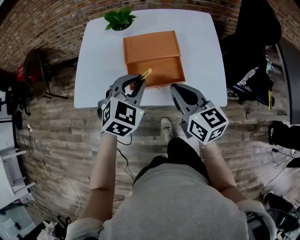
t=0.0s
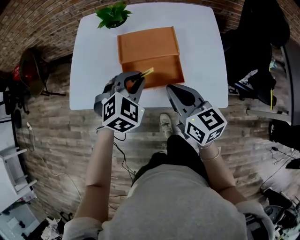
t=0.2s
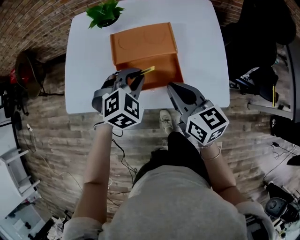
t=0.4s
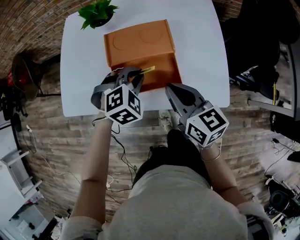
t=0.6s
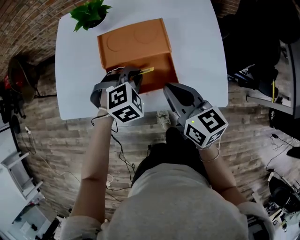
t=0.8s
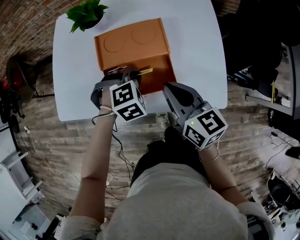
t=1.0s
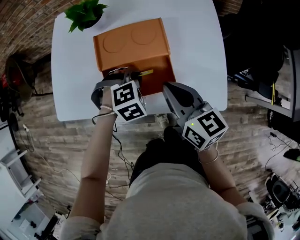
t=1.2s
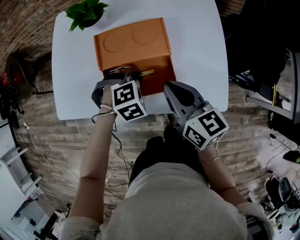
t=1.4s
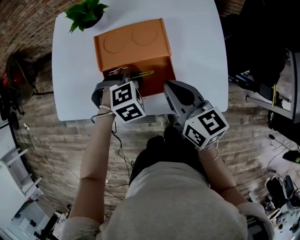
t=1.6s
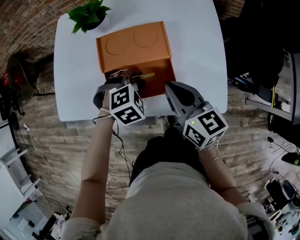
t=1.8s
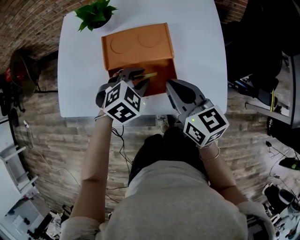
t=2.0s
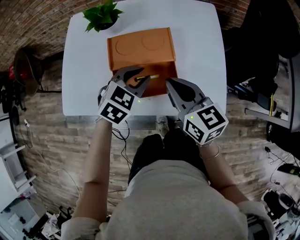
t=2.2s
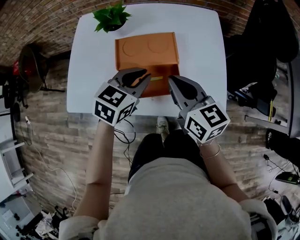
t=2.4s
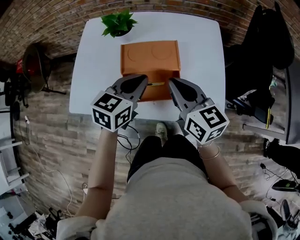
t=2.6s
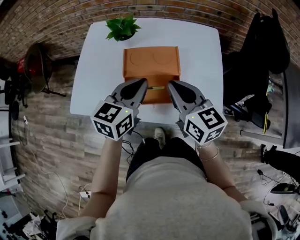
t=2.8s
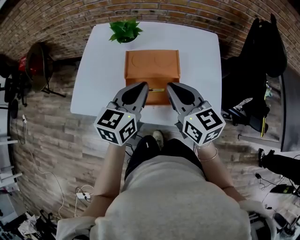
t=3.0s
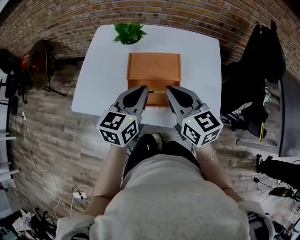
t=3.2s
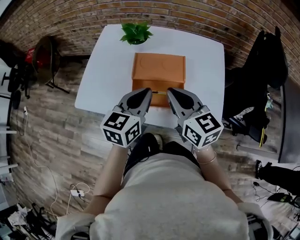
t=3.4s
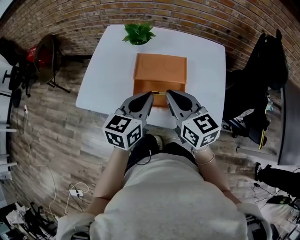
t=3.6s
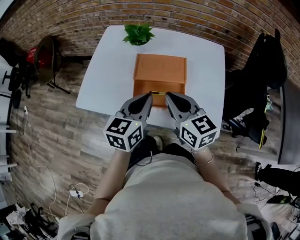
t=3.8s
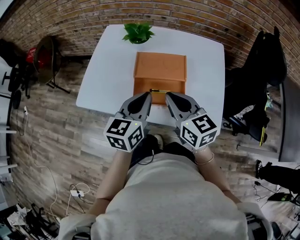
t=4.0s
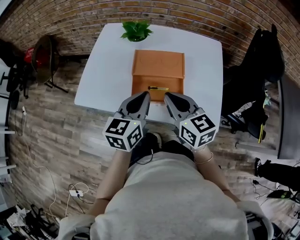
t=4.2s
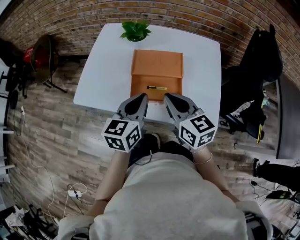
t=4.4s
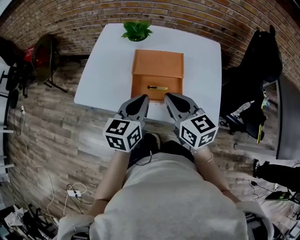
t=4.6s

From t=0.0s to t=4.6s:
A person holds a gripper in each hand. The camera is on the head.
From t=0.0s to t=1.6s: The right gripper goes approximately 10 cm forward and downward. Meanwhile the left gripper moves downward and forward, some 20 cm, and tips its fingers downward by approximately 30 degrees.
From t=1.6s to t=3.0s: The left gripper moves upward, approximately 20 cm, and points its fingers roughly 50 degrees further upward; the right gripper shifts some 10 cm upward.
From t=3.0s to t=4.6s: Both grippers move backward, approximately 5 cm.

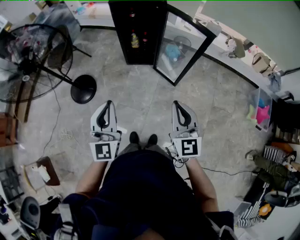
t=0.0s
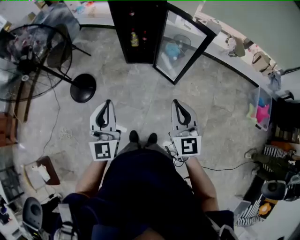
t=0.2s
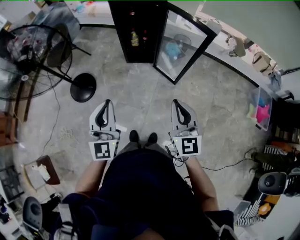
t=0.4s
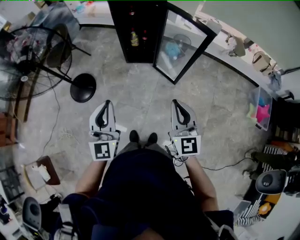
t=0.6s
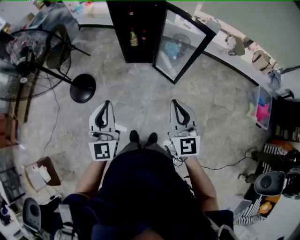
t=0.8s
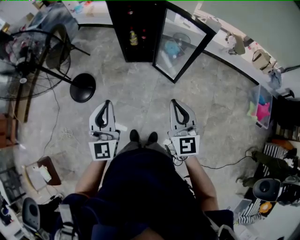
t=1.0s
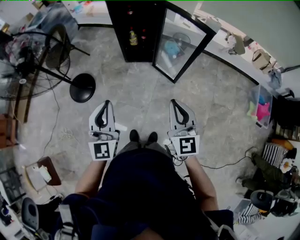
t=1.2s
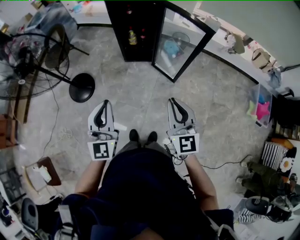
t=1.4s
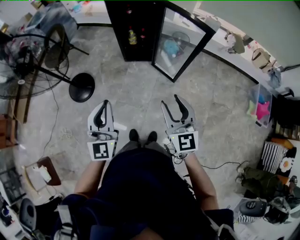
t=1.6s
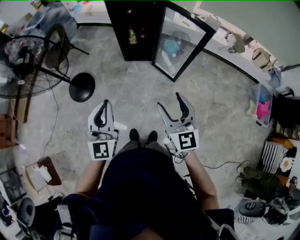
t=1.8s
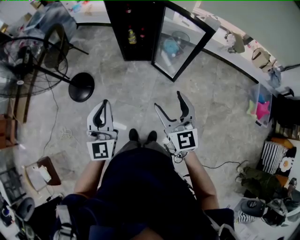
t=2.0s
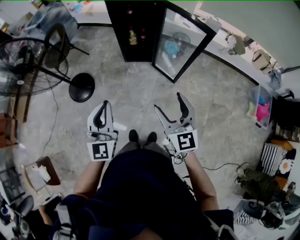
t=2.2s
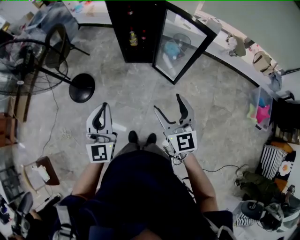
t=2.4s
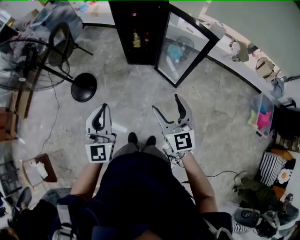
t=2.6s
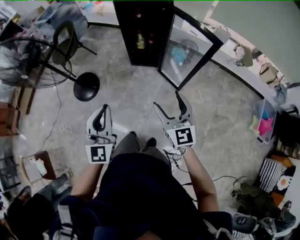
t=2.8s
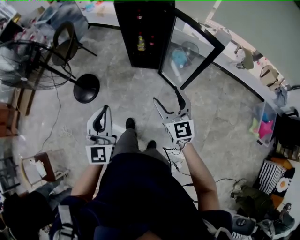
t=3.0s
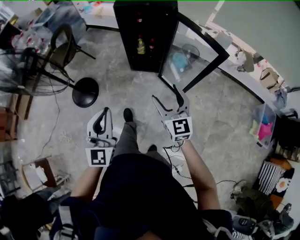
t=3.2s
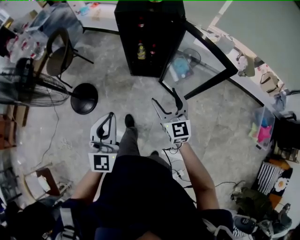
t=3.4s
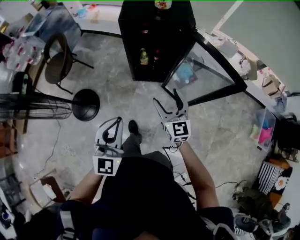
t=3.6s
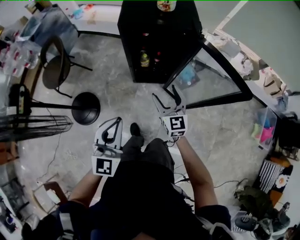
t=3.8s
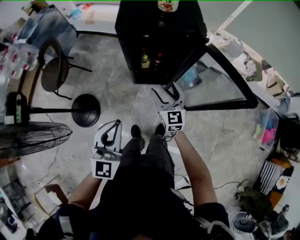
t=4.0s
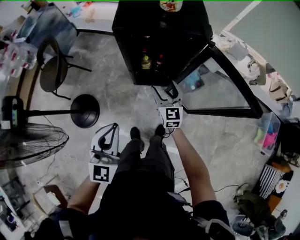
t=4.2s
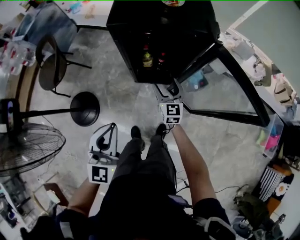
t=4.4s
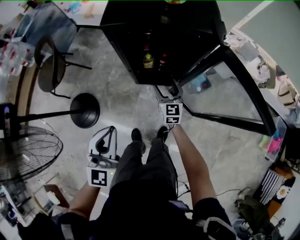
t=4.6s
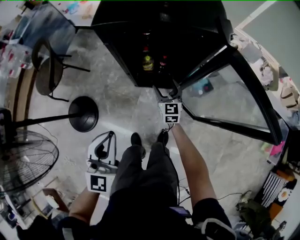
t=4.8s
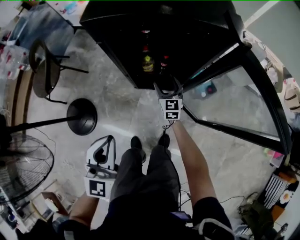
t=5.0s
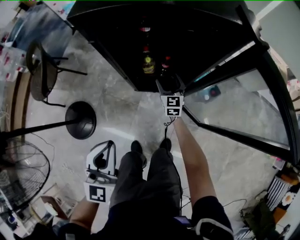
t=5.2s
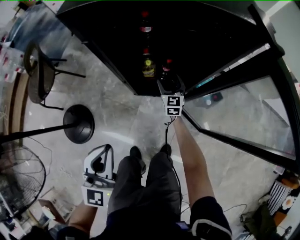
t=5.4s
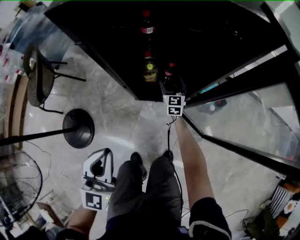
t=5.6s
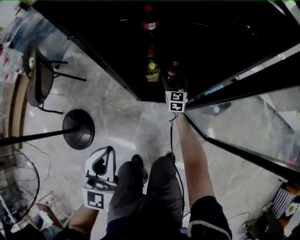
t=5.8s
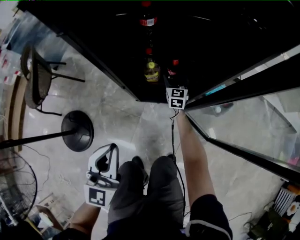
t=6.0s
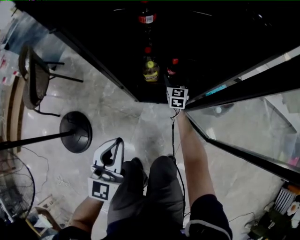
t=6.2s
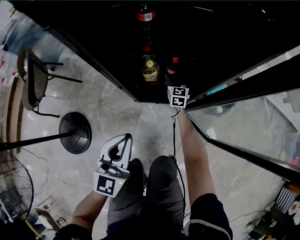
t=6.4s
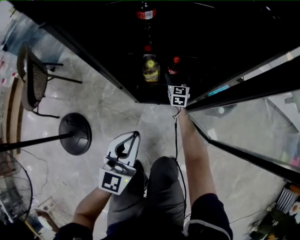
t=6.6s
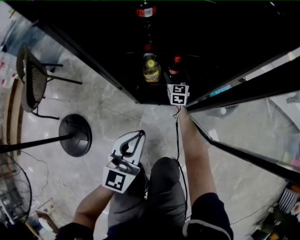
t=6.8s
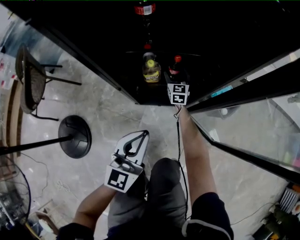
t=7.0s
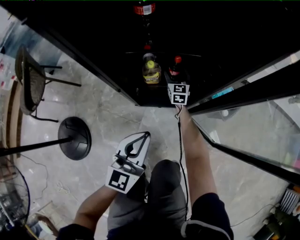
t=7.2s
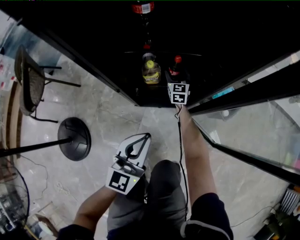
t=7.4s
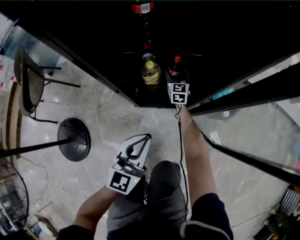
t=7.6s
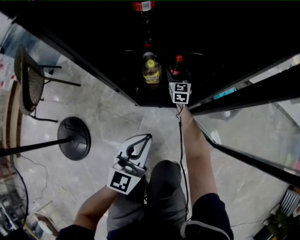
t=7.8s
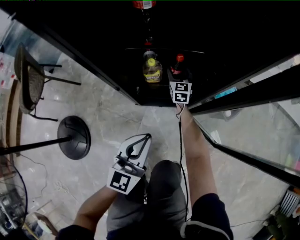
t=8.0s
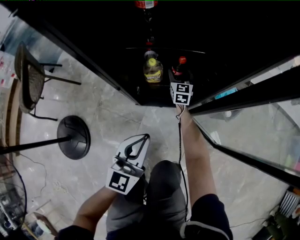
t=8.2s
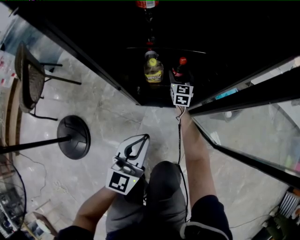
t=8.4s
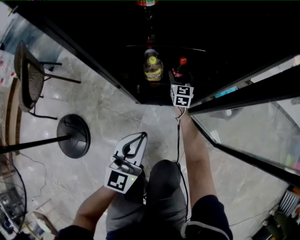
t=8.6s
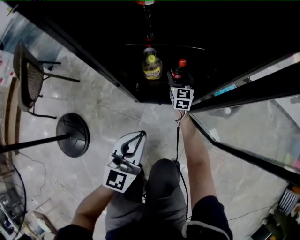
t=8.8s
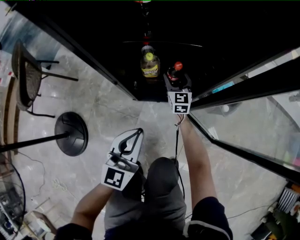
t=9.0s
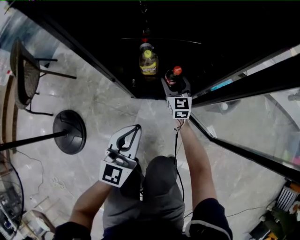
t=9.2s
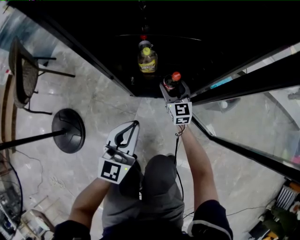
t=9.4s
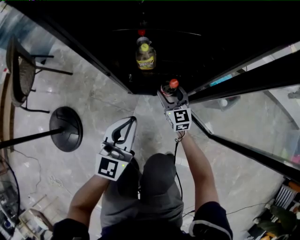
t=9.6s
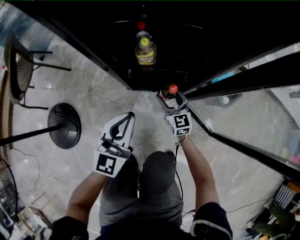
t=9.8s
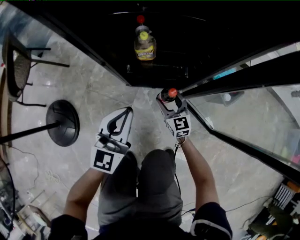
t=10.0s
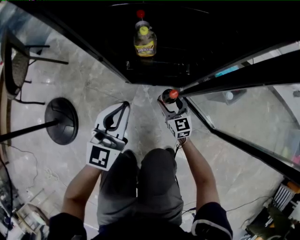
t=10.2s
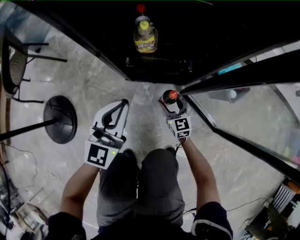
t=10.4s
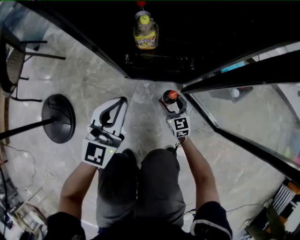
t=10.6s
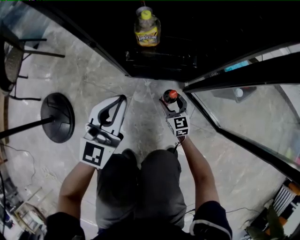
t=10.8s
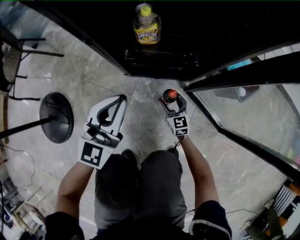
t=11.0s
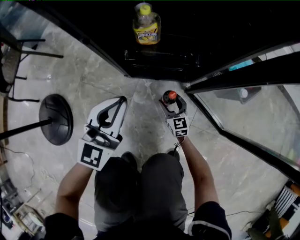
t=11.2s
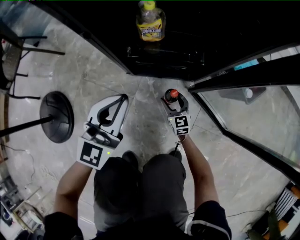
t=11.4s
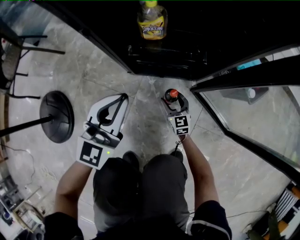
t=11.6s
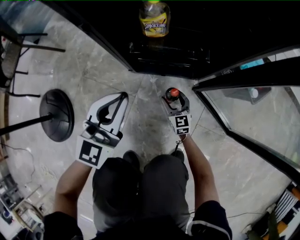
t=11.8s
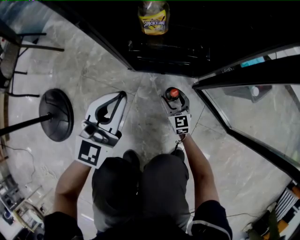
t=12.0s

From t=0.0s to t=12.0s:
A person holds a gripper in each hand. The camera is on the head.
From t=0.0s to t=1.6s: The right gripper opens.
From t=1.6s to t=3.0s: The right gripper shifts roughly 10 cm forward, and opens.
From t=3.0s to t=4.4s: The two grippers travel together, forward, roughly 50 cm. The right gripper shifts approximately 30 cm downward.
From t=4.4s to t=6.0s: The grippers both shift downward and forward by roughly 40 cm.
From t=6.0s to t=7.6s: The right gripper shifts approximately 10 cm downward and forward, while the left gripper goes approximately 20 cm downward, to the right and forward.
From t=7.6s to t=9.0s: The right gripper is displaced backward by approximately 5 cm.
From t=9.0s to t=10.4s: The right gripper heads backward and downward, covering about 25 cm; the left gripper travels downward by some 10 cm.
From t=10.4s to t=12.0s: The left gripper is displaced downward by some 10 cm. The right gripper heads downward, covering about 15 cm.

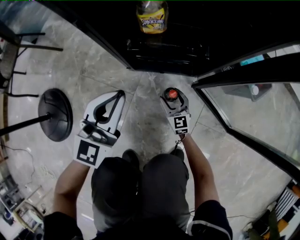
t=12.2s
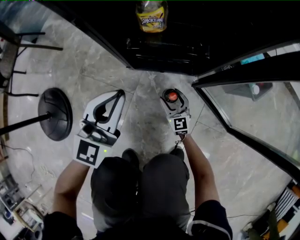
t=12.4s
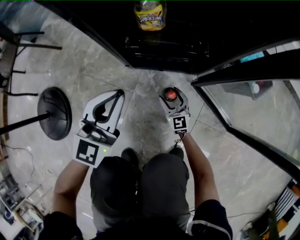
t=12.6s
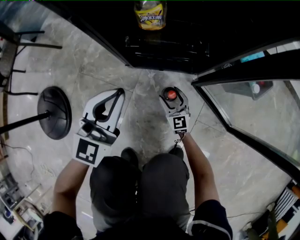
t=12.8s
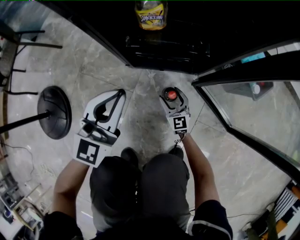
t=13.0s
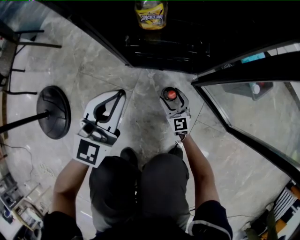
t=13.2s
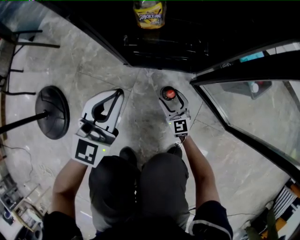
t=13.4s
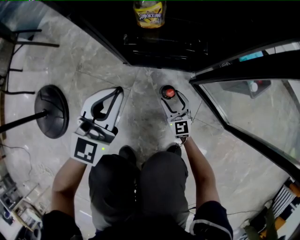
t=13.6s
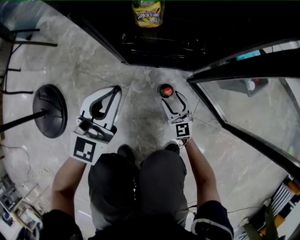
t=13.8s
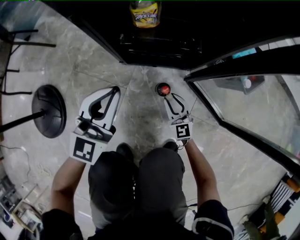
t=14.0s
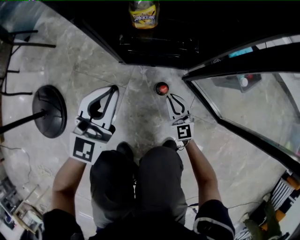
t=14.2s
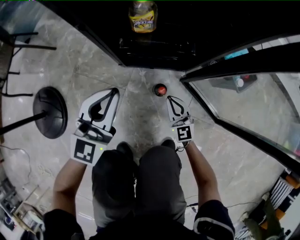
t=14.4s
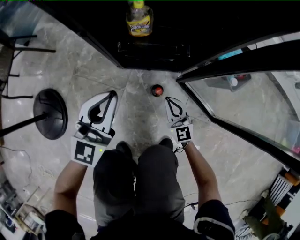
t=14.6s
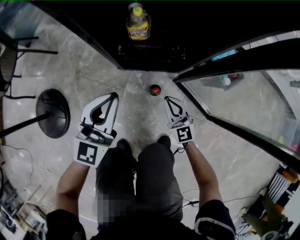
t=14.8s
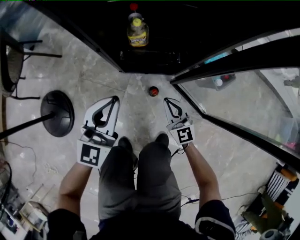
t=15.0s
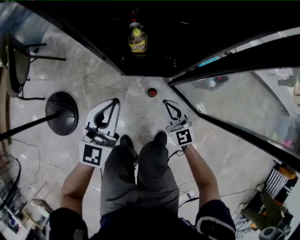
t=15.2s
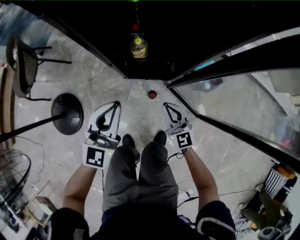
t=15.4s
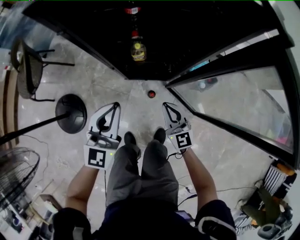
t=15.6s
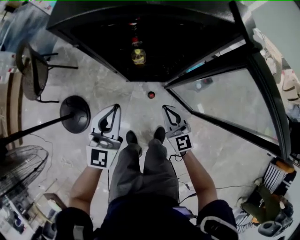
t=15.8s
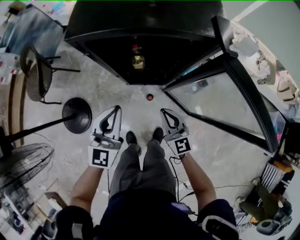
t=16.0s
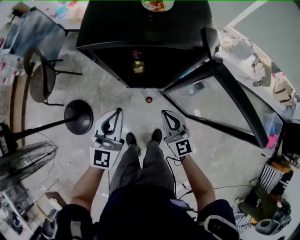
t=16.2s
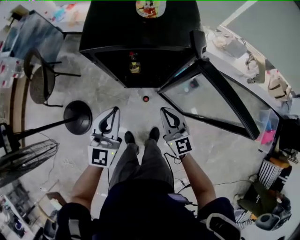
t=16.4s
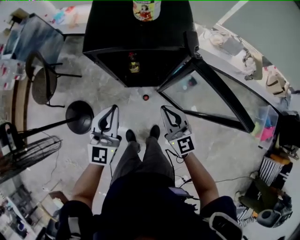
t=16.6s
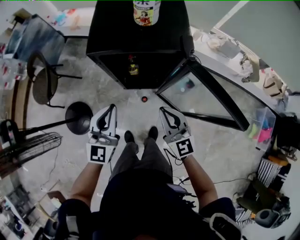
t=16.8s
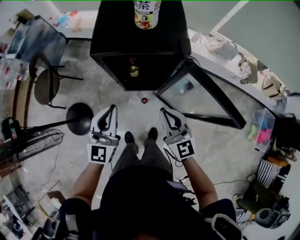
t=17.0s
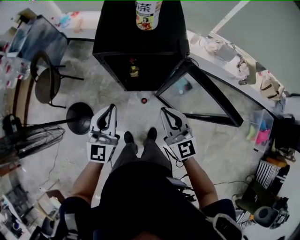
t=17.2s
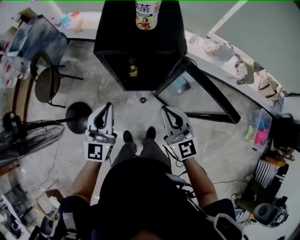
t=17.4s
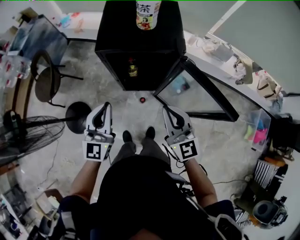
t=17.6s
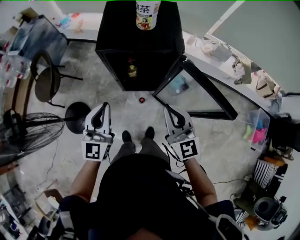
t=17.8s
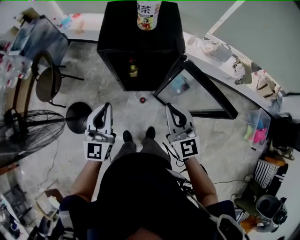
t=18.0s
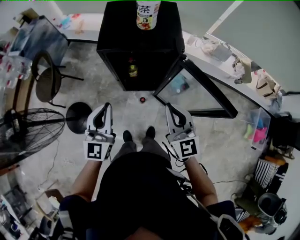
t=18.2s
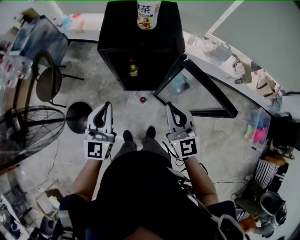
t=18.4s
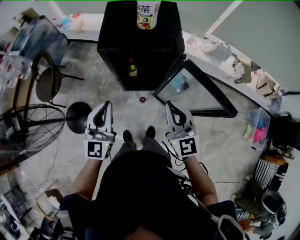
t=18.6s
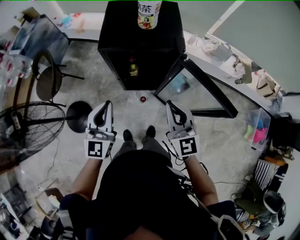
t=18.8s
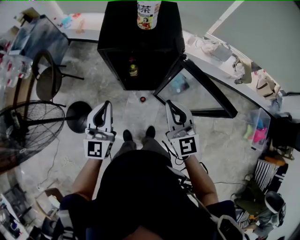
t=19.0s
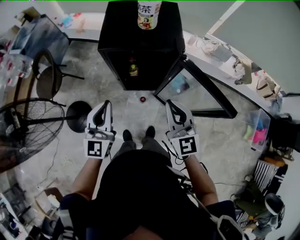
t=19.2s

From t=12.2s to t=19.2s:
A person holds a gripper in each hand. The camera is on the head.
From t=12.2s to t=13.6s: The grippers make only small movements.
From t=13.6s to t=15.0s: The right gripper moves upward, about 30 cm, and closes, while the left gripper travels upward by approximately 20 cm.
From t=15.0s to t=16.4s: The grippers both shift upward by roughly 50 cm.
From t=16.4s to t=17.8s: The right gripper travels upward by roughly 25 cm. Meanwhile the left gripper travels upward and backward by approximately 15 cm.
From t=17.8s to t=19.2s: There are only small adjustments of the grippers.
